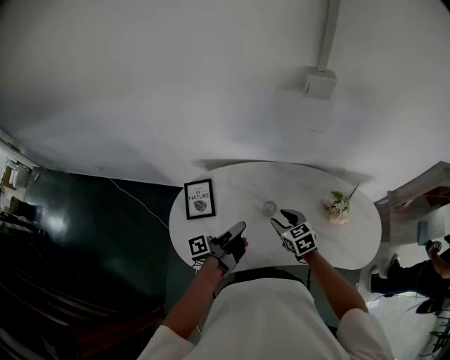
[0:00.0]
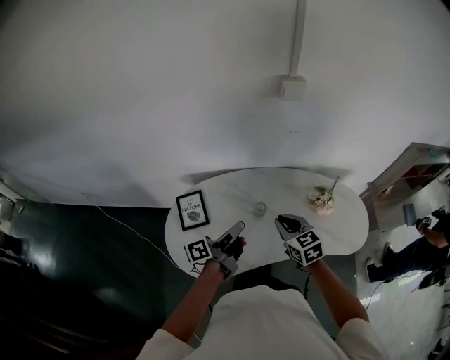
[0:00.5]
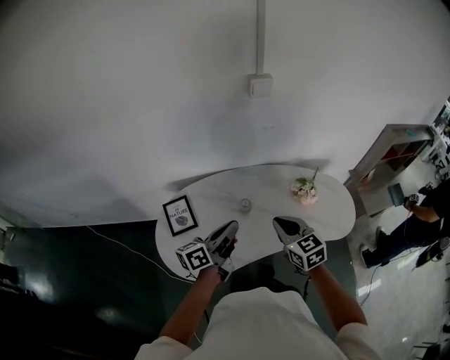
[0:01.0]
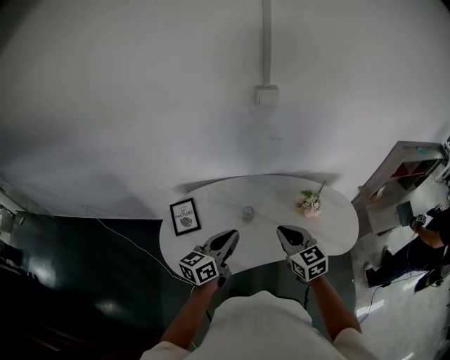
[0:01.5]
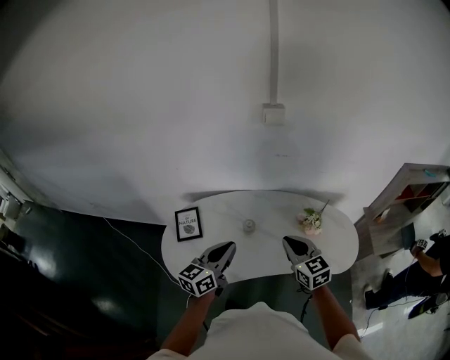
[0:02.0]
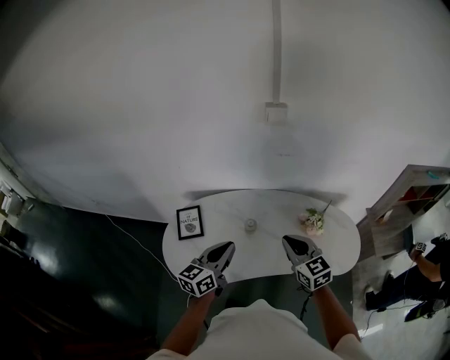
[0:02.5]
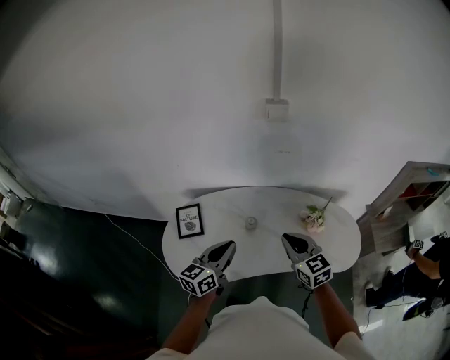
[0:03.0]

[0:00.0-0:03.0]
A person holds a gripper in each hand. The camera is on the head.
0:00.0 to 0:01.5: The right gripper goes approximately 20 cm upward, turns by about 20 degrees, and closes its fingers.

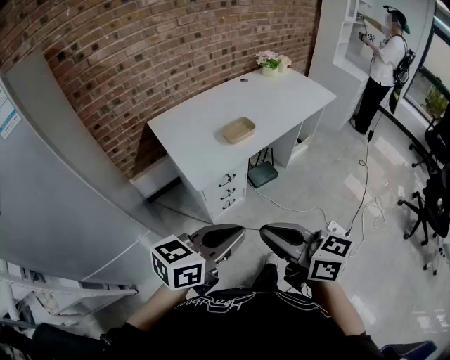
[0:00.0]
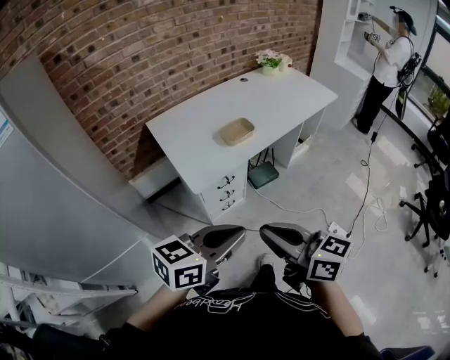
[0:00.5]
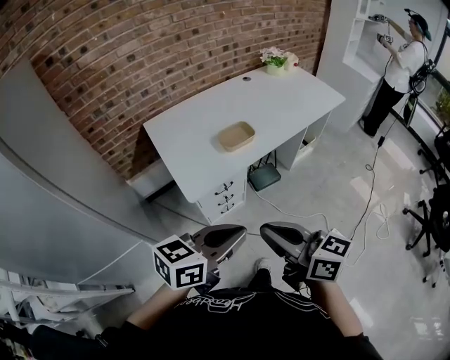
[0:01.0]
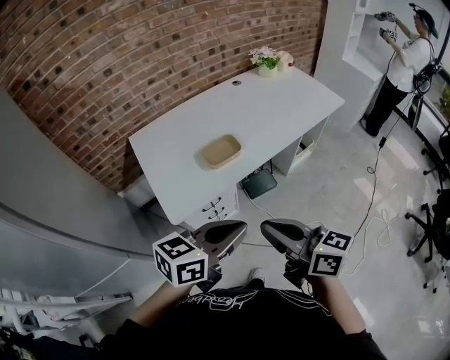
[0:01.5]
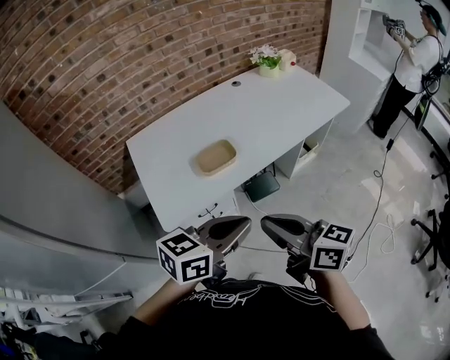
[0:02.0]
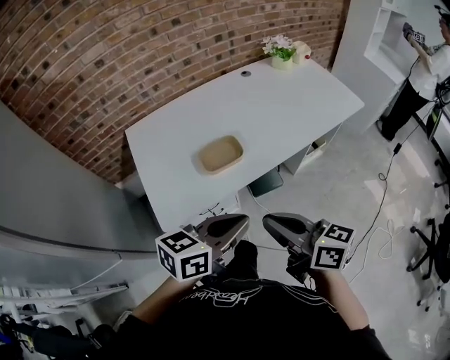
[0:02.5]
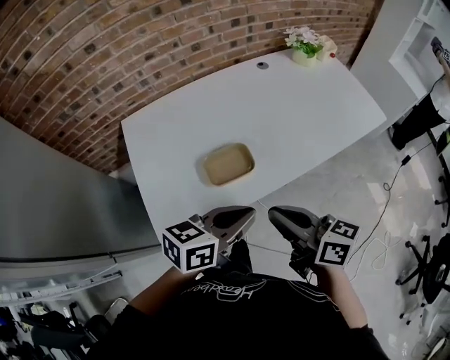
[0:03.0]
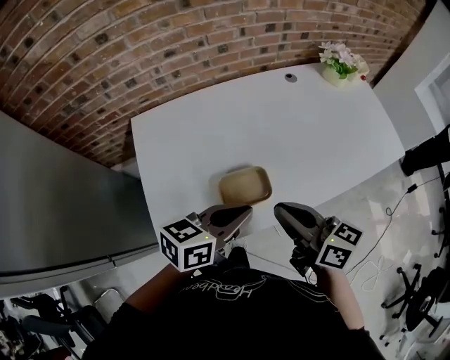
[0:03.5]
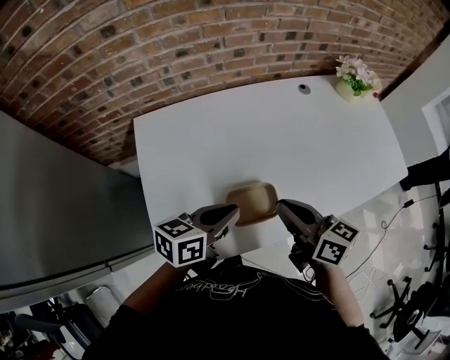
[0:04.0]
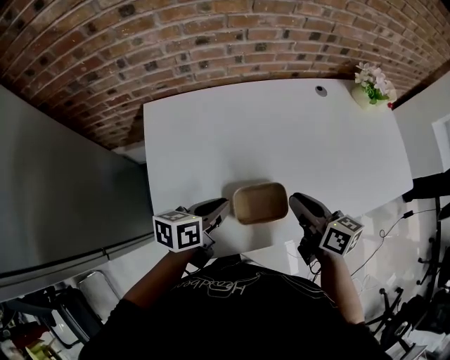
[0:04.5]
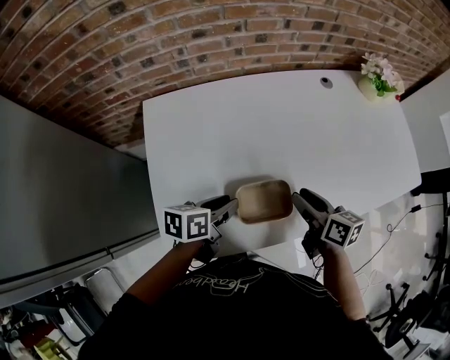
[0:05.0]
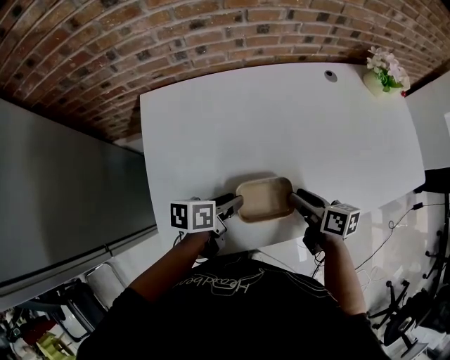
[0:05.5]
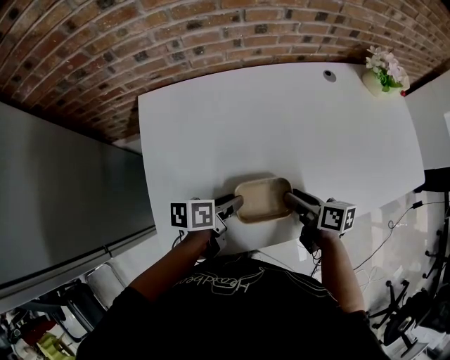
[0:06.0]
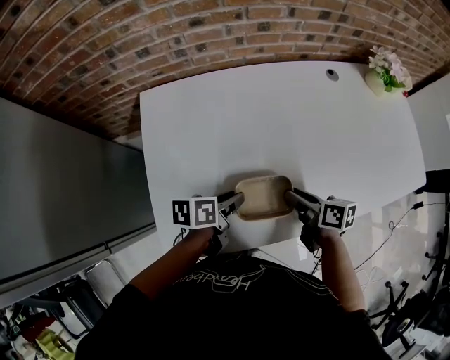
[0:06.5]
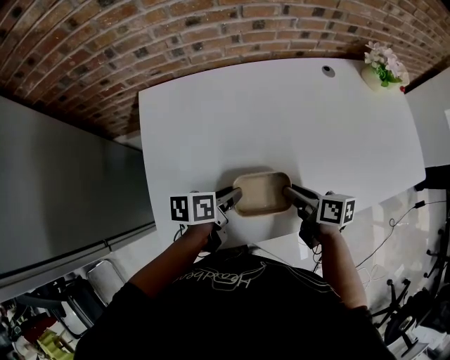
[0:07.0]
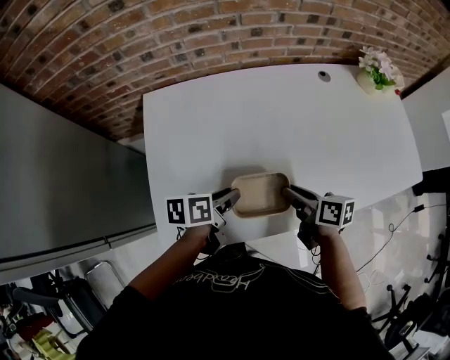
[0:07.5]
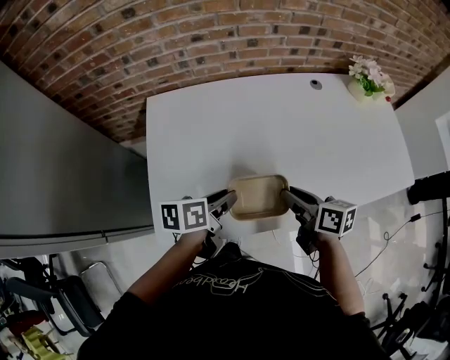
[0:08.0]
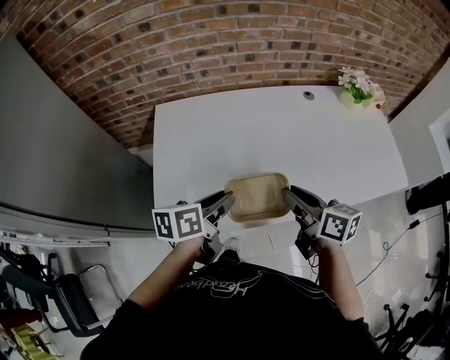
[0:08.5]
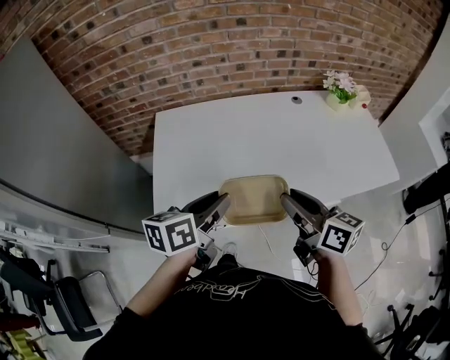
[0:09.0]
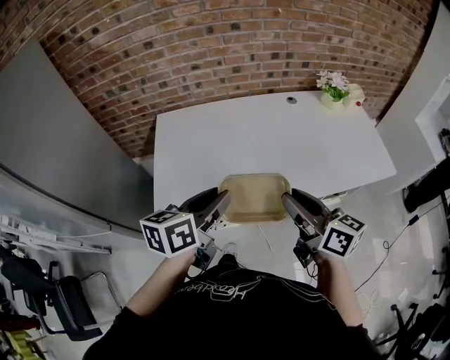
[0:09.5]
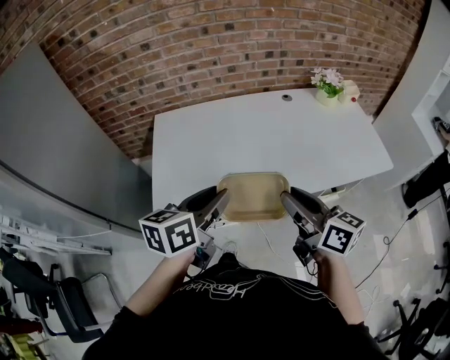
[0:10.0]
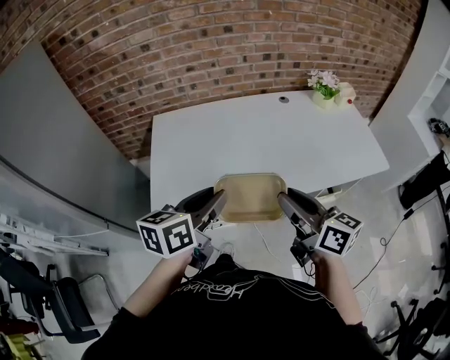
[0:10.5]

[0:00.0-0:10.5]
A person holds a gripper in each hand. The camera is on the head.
0:00.0 to 0:02.0: The two grippers go some 30 cm forward and to the right.
0:02.0 to 0:04.0: The left gripper heads forward and to the left, covering about 35 cm, and changes its angle by roughly 30 degrees; the right gripper is displaced forward by approximately 35 cm.
0:04.0 to 0:06.5: Both grippers travel together downward, approximately 15 cm. The right gripper swivels about 30 degrees, and opens its fingers. The left gripper rotates some 30 degrees, and opens its fingers.
0:06.5 to 0:08.5: The right gripper travels upward by approximately 15 cm, and swivels approximately 20 degrees, while the left gripper shifts about 15 cm upward and backward.
0:08.5 to 0:10.5: Both grippers move backward and upward, about 15 cm. The left gripper changes its angle by about 20 degrees.

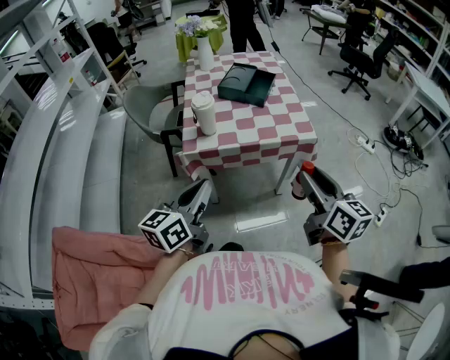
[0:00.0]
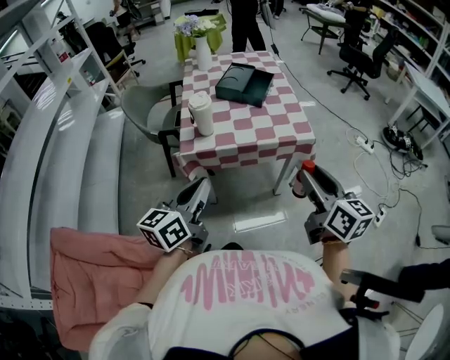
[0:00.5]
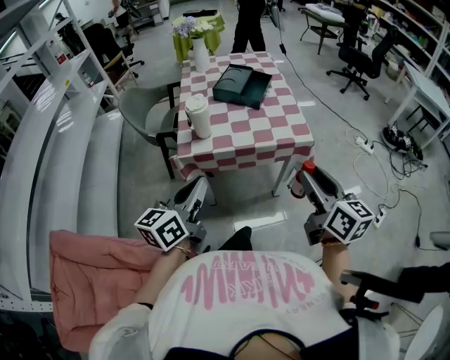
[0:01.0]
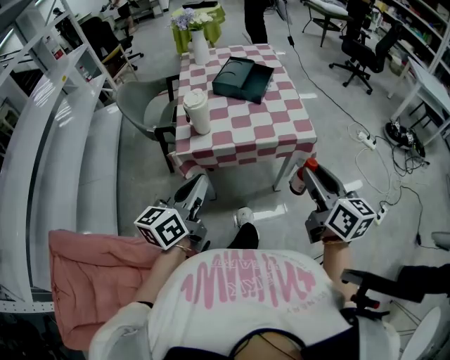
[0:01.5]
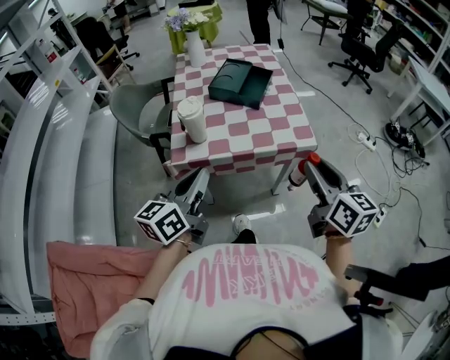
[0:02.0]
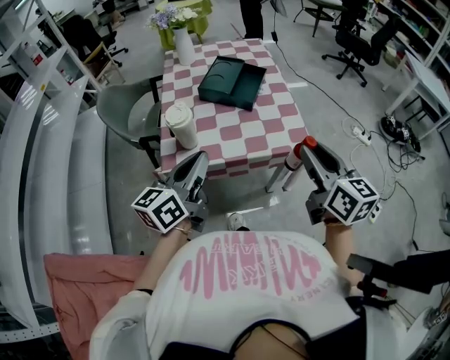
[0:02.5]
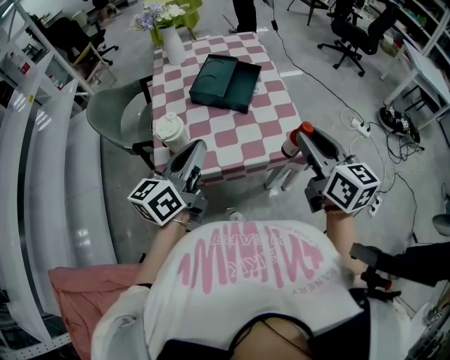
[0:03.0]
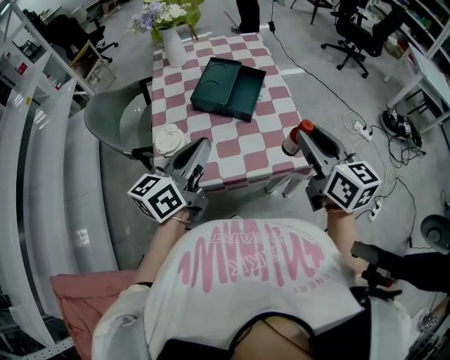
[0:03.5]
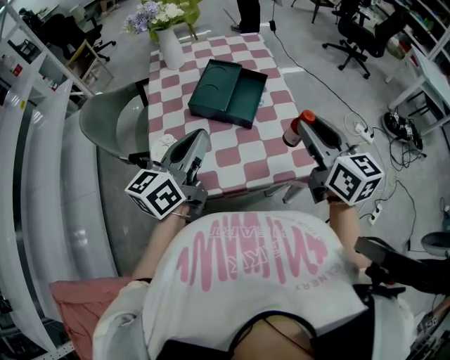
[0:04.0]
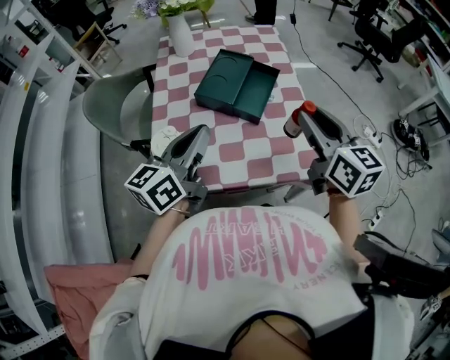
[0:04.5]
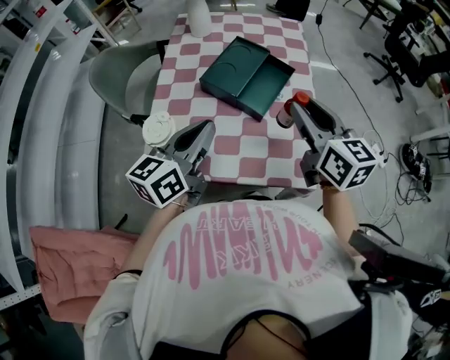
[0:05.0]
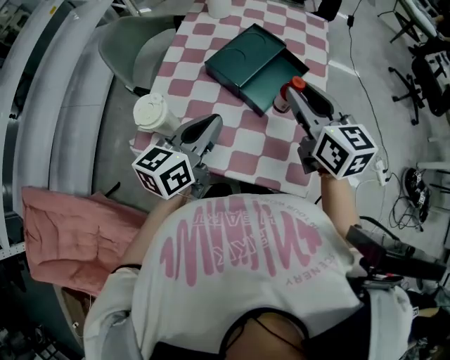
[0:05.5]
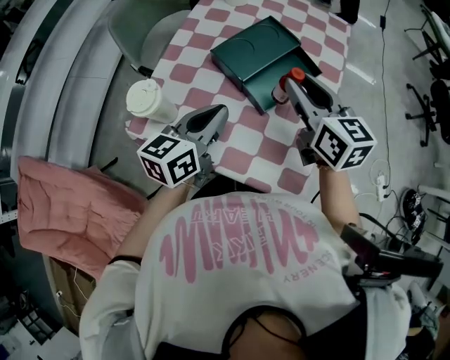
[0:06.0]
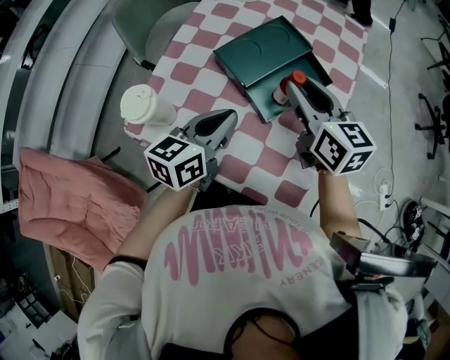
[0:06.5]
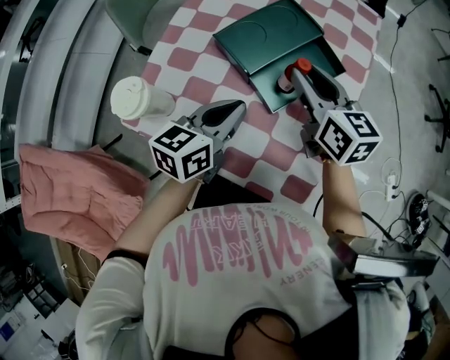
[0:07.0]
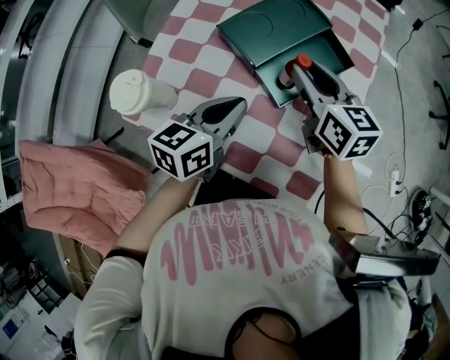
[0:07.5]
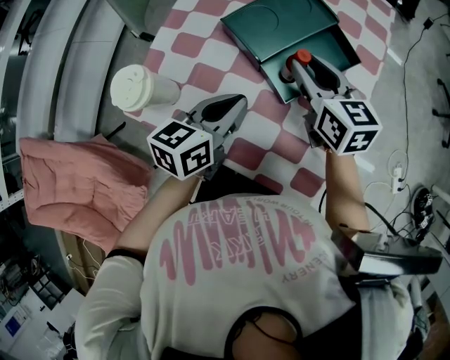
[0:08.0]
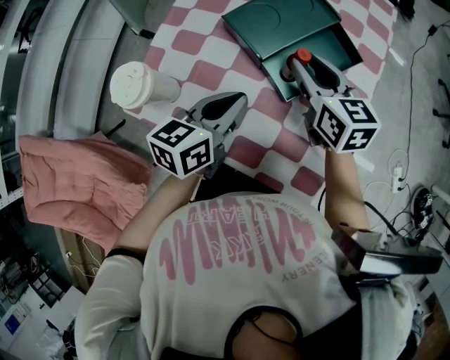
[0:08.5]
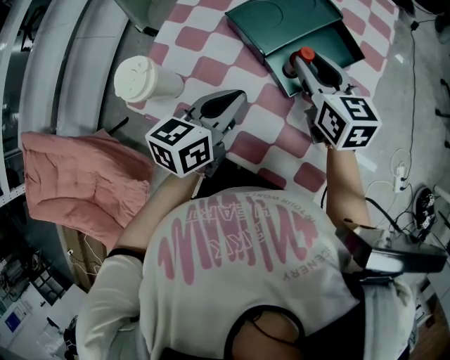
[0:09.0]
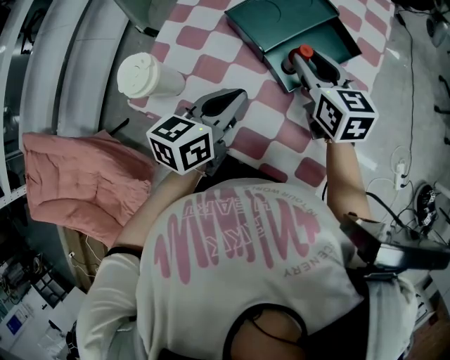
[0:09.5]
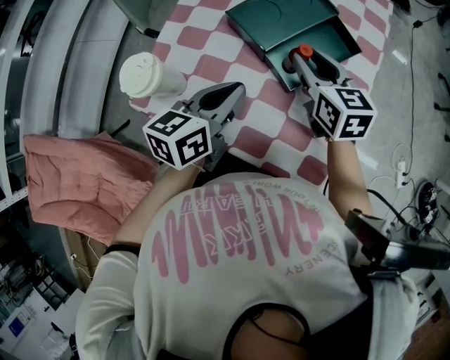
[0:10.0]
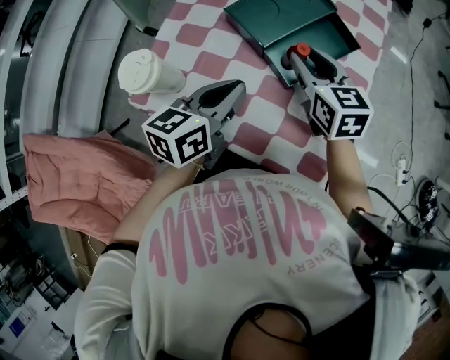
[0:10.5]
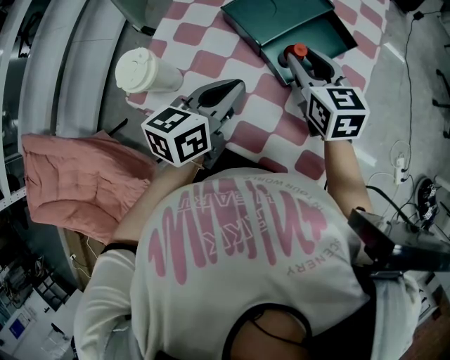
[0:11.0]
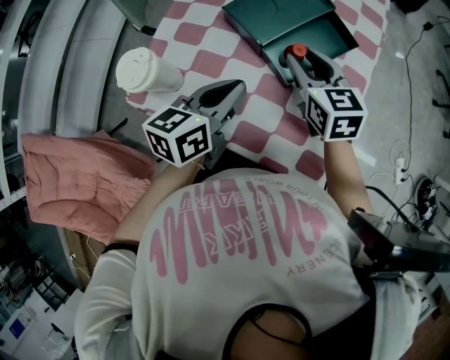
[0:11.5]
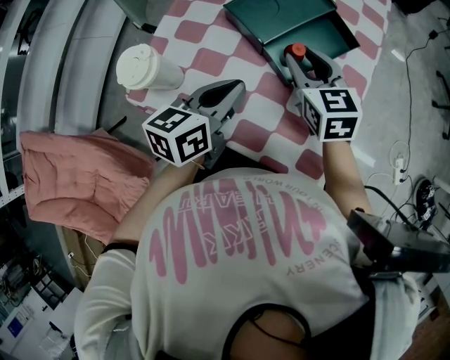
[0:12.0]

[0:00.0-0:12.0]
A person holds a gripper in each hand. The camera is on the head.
0:00.0 to 0:02.0: Both grippers move forward, approximately 10 cm.
0:02.0 to 0:04.0: Both grippers travel together forward, about 25 cm.
0:04.0 to 0:06.0: The right gripper ends up some 20 cm from where it was, and turns by roughly 30 degrees; the left gripper is displaced downward by roughly 10 cm, and rotates some 30 degrees.
0:06.0 to 0:08.0: The left gripper goes approximately 10 cm downward; the right gripper is displaced downward and forward by some 15 cm.
0:08.0 to 0:12.0: The grippers move only a little.

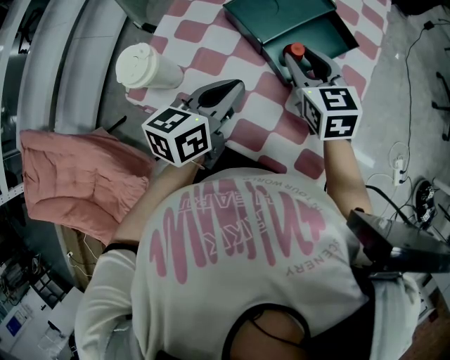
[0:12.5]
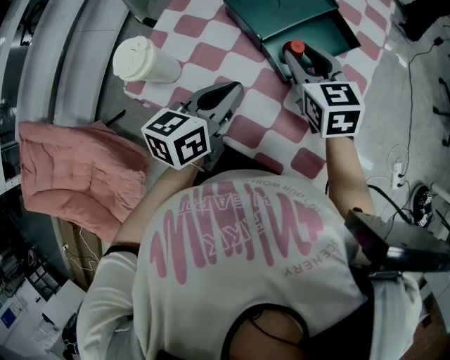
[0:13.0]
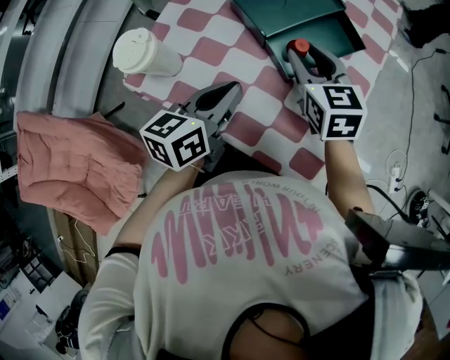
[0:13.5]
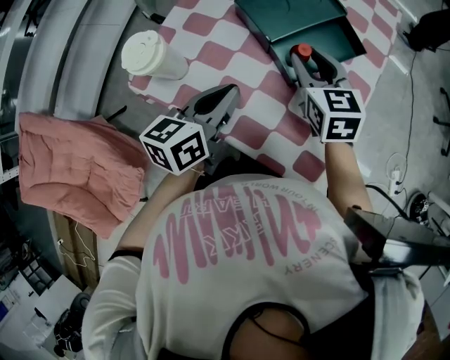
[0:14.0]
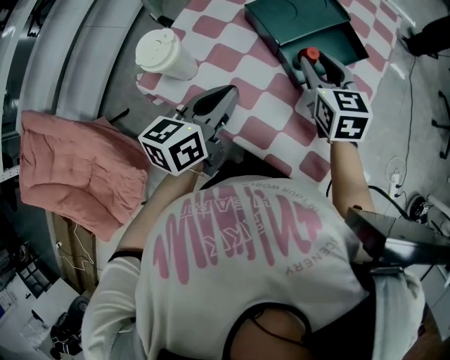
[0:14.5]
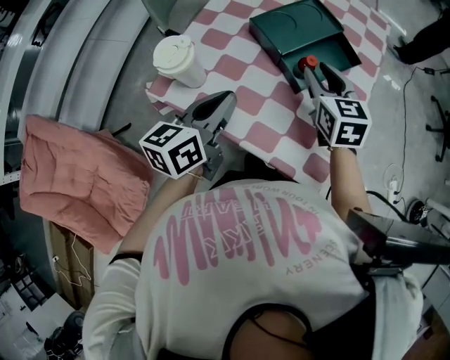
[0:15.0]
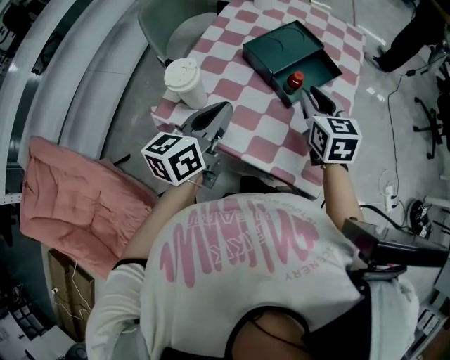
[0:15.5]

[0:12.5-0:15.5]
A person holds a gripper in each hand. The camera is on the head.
0:12.5 to 0:14.0: The grippers make only small movements.
0:14.0 to 0:15.5: The right gripper goes about 10 cm backward and upward, while the left gripper travels upward and to the left by roughly 10 cm.
